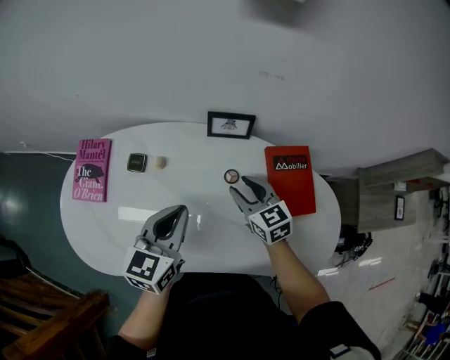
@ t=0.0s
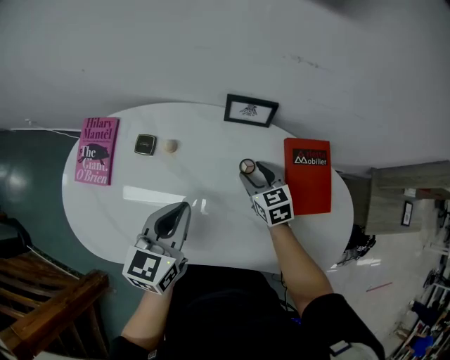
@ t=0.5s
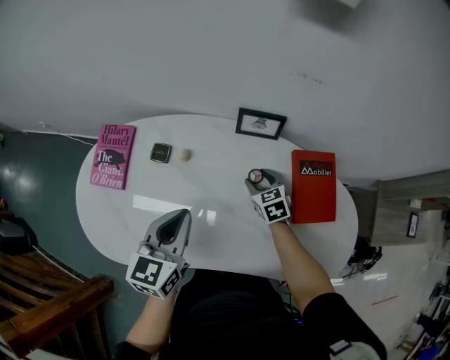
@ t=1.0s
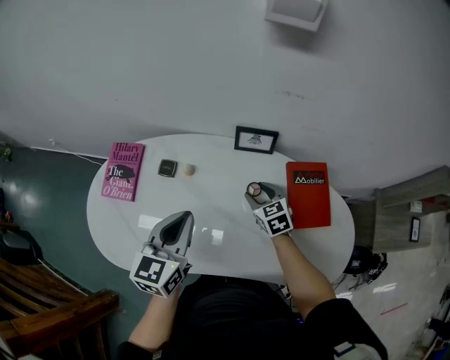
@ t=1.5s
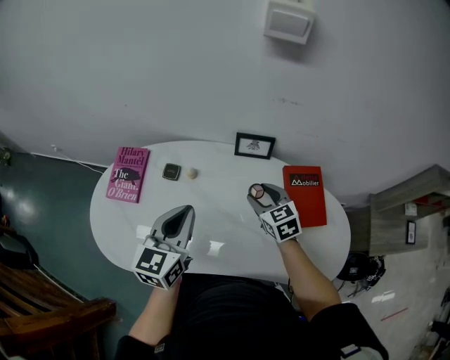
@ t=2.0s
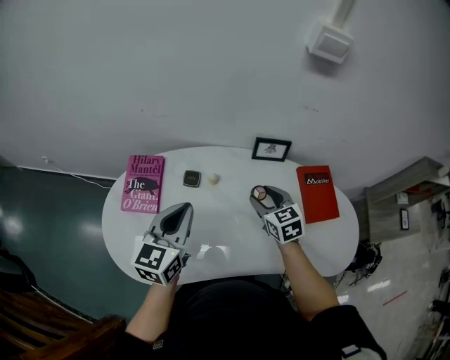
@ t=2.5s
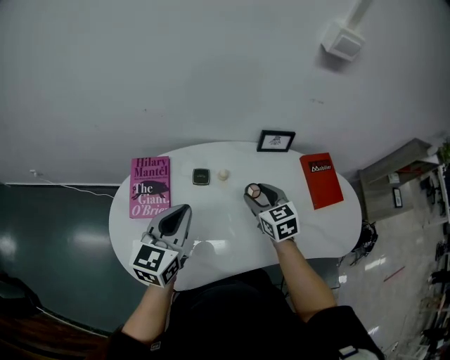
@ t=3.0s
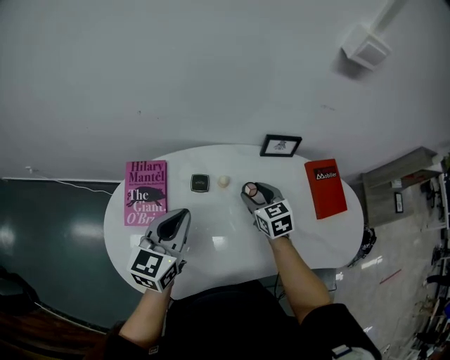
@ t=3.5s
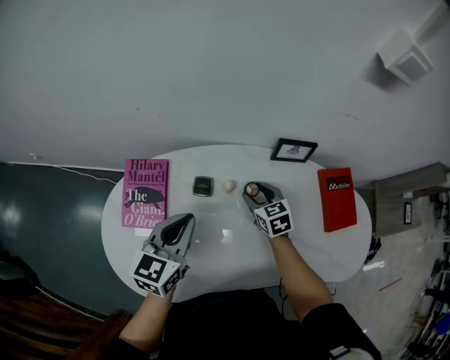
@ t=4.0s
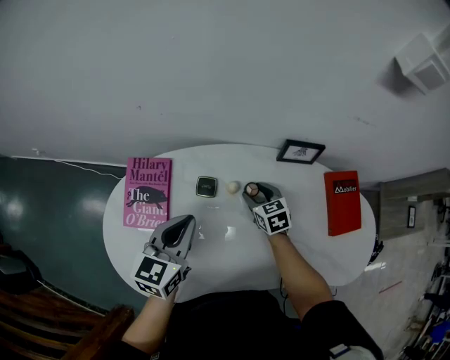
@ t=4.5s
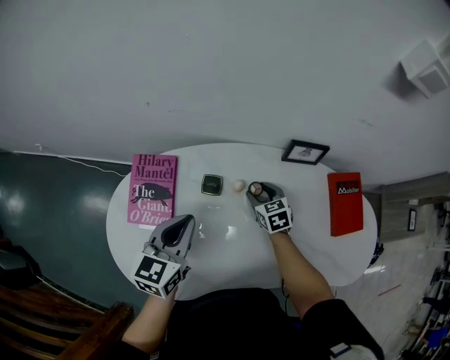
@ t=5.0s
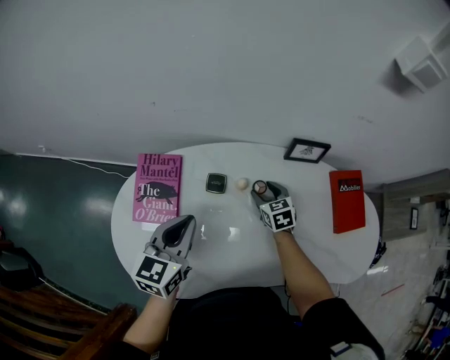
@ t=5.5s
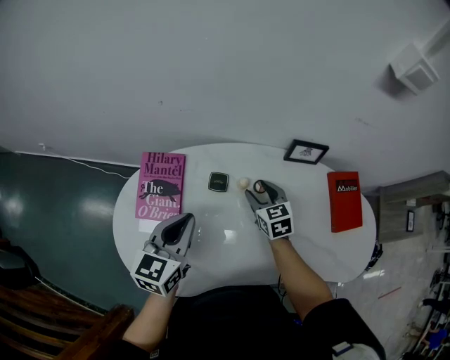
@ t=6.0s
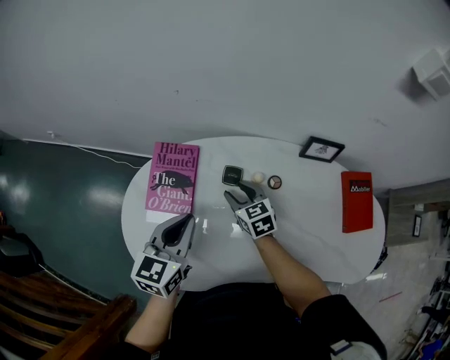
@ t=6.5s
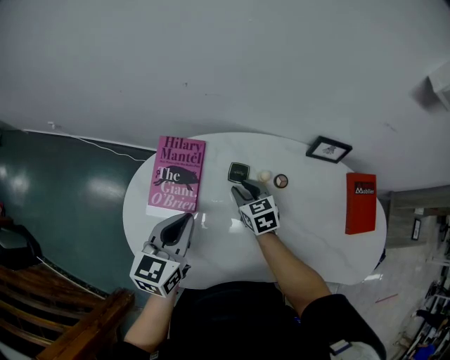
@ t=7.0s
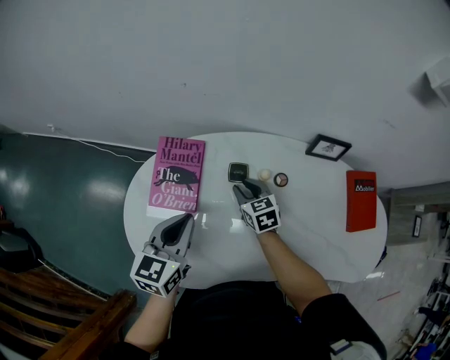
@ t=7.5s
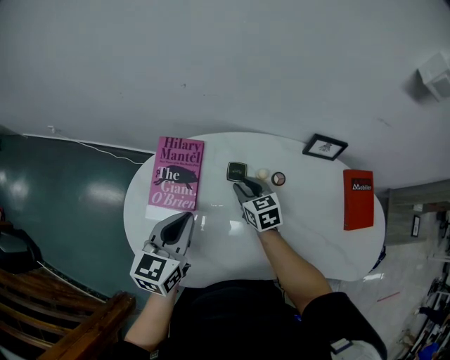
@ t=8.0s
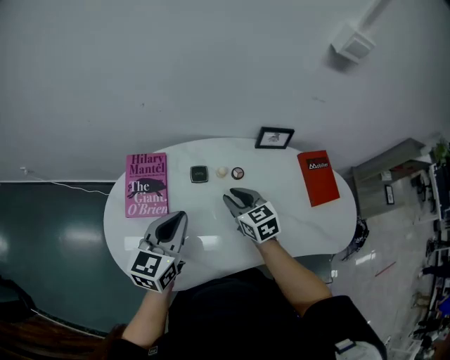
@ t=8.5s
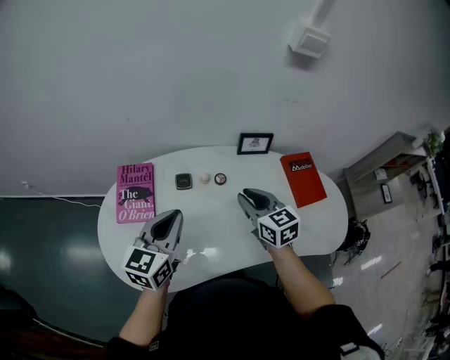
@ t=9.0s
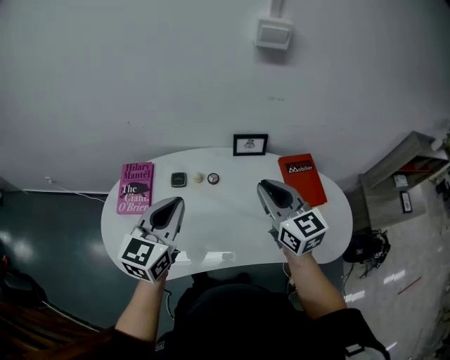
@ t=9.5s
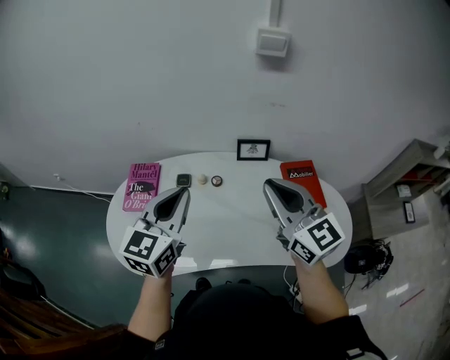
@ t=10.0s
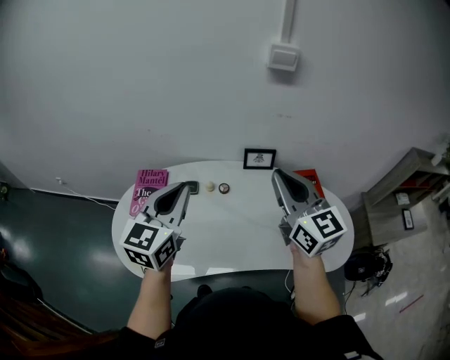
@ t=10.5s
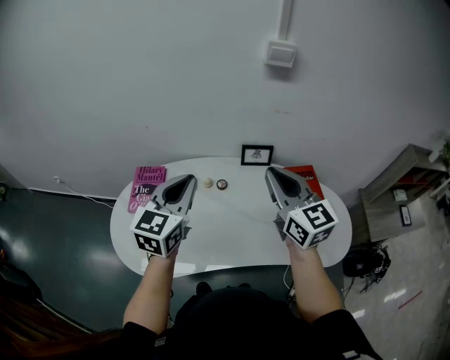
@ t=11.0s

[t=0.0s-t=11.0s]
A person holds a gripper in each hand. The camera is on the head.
t=0.0s to t=2.0s: The left gripper heads upward and to the left, covering roughly 10 cm. The right gripper travels downward and back again, approximately 10 cm each way.
t=2.0s to t=3.5s: The two grippers go roughly 20 cm to the left.
t=3.5s to t=5.5s: The right gripper is displaced downward by about 10 cm.
t=5.5s to t=7.5s: The right gripper goes roughly 15 cm to the left. The left gripper shifts roughly 5 cm to the left.
t=7.5s to t=9.0s: The right gripper shifts approximately 30 cm upward, to the right and backward, and turns by some 20 degrees; the left gripper heads to the right and upward, covering roughly 15 cm.
t=9.0s to t=11.0s: Both grippers travel together upward and to the right, approximately 20 cm. The right gripper changes its angle by about 30 degrees.

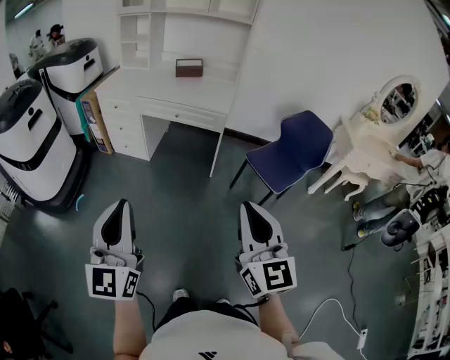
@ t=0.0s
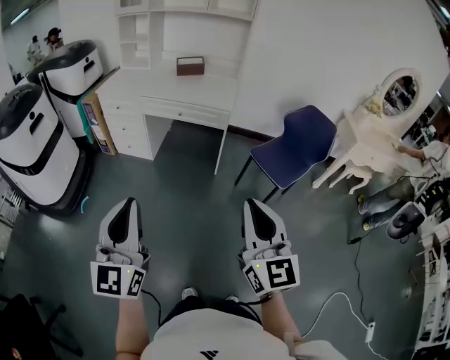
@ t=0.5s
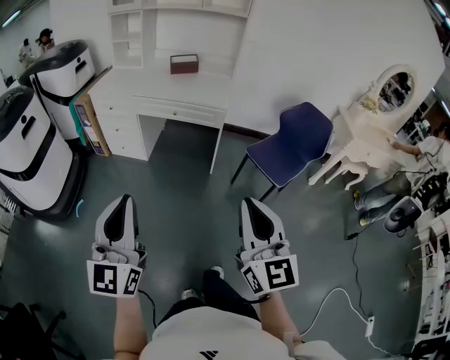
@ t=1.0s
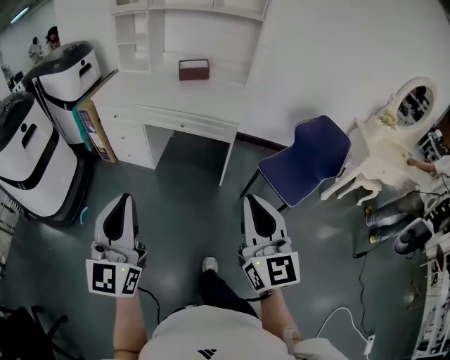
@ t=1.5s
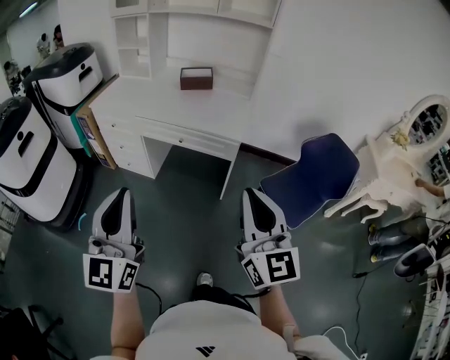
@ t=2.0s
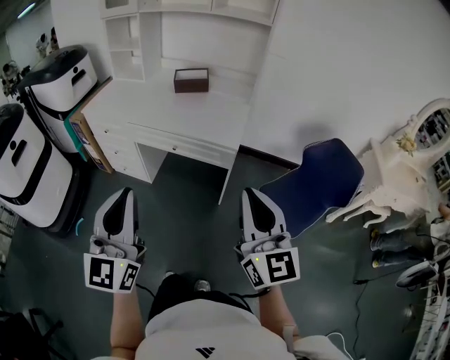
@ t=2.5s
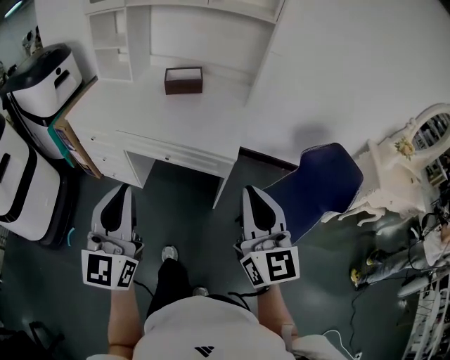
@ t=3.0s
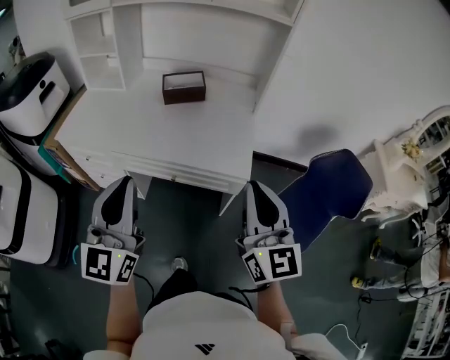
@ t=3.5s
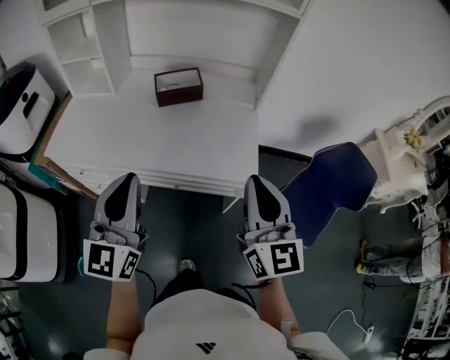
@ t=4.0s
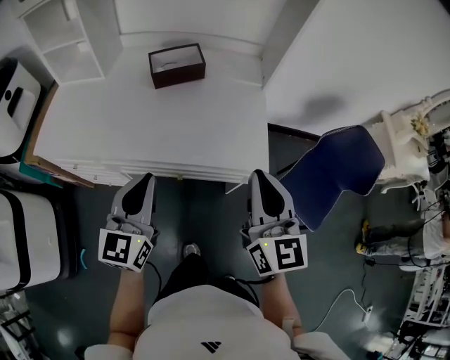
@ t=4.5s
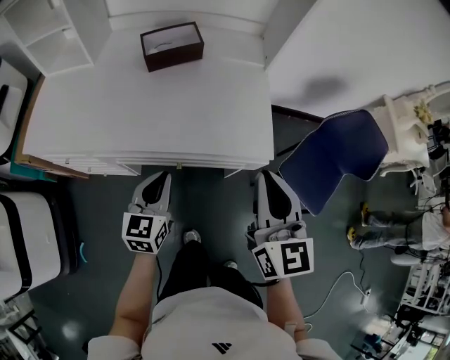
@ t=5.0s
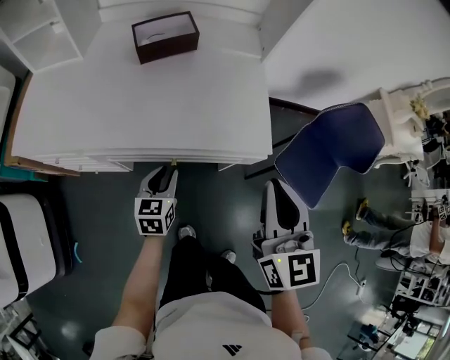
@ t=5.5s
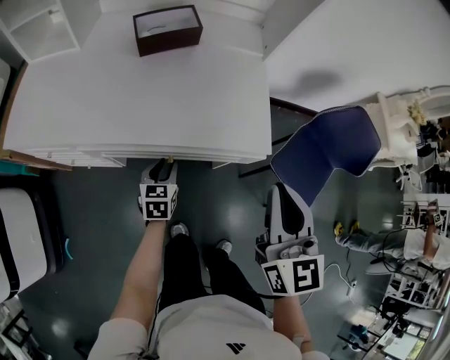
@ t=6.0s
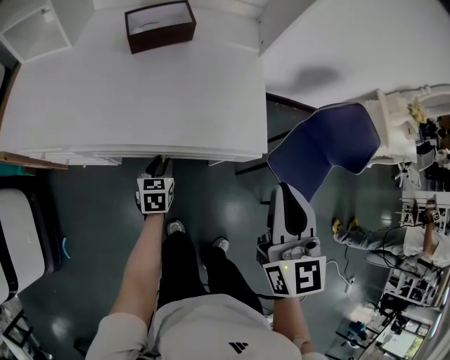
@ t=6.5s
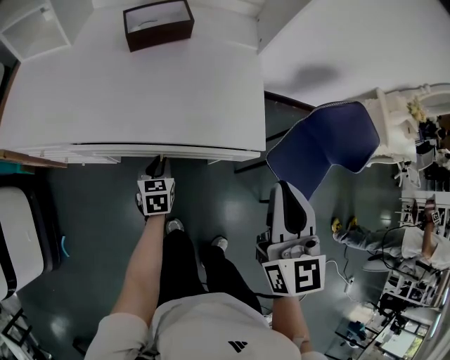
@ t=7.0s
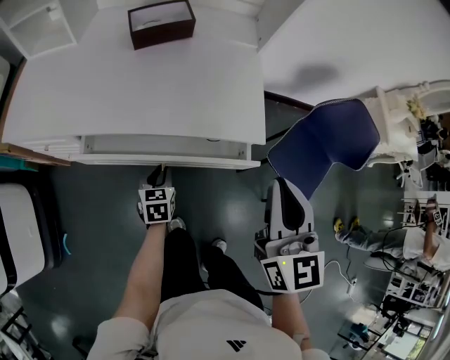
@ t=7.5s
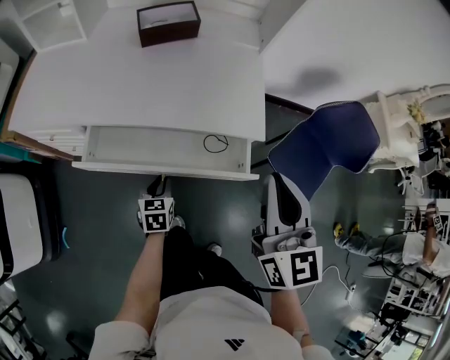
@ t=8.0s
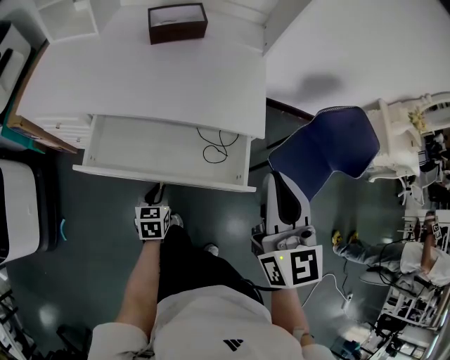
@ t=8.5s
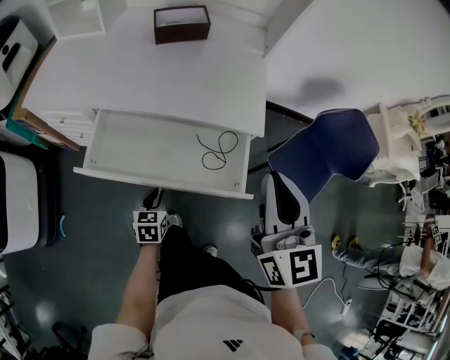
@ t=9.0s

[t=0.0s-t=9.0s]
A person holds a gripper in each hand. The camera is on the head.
t=0.0s to t=2.0s: The grippers both shift forward by approximately 25 cm.
t=2.0s to t=4.5s: The two grippers travel together, forward, about 40 cm. The left gripper turns by some 30 degrees; the right gripper changes its angle by about 20 degrees.
t=4.5s to t=7.0s: The right gripper shifts by approximately 5 cm, while the left gripper shifts roughly 30 cm downward, and tilts its fingers some 40 degrees downward.
t=7.0s to t=9.0s: The left gripper shifts about 20 cm backward; the right gripper shifts approximately 10 cm backward.

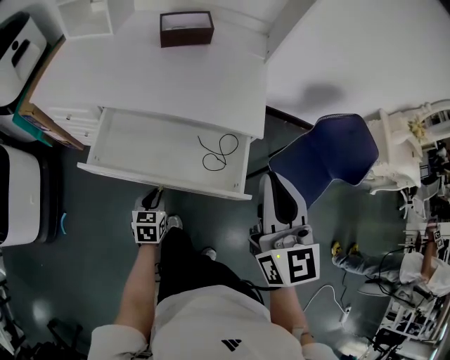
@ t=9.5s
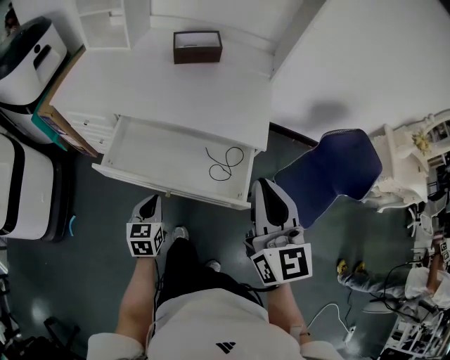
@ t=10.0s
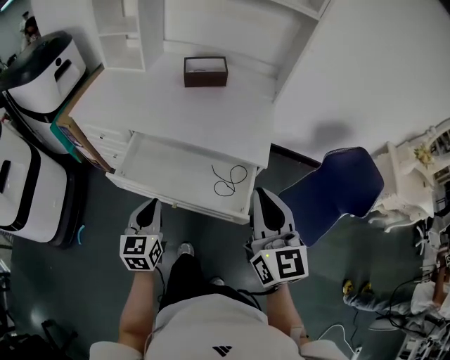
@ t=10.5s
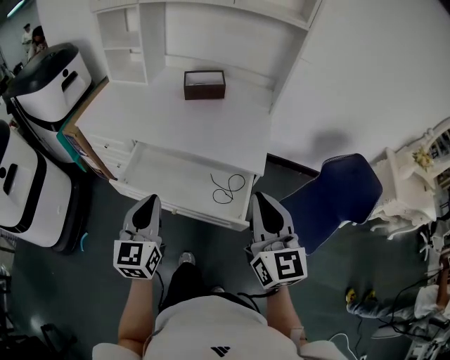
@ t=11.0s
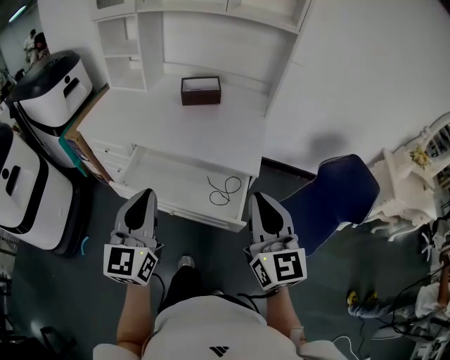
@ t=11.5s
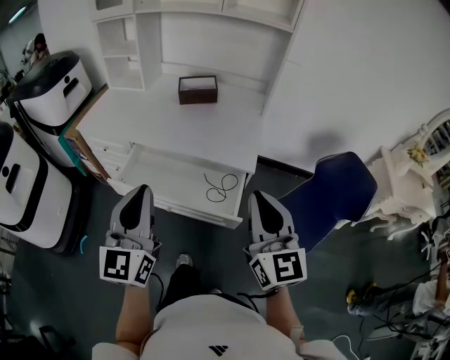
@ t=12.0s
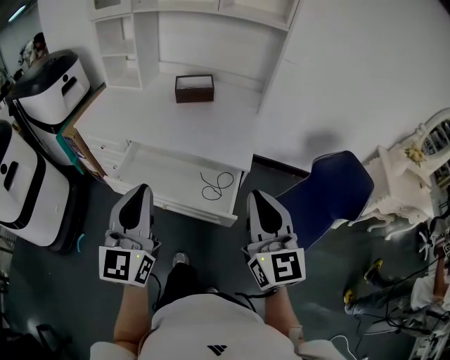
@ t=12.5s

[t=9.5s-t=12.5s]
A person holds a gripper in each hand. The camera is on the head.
t=9.5s to t=11.0s: The left gripper goes about 30 cm upward, and angles its fingers upward, by roughly 30 degrees.
t=11.0s to t=12.5s: The left gripper is displaced upward and backward by roughly 15 cm, while the right gripper changes place by about 5 cm.

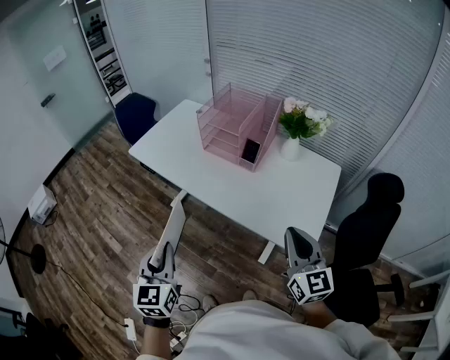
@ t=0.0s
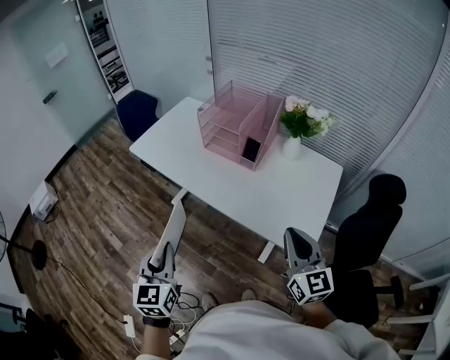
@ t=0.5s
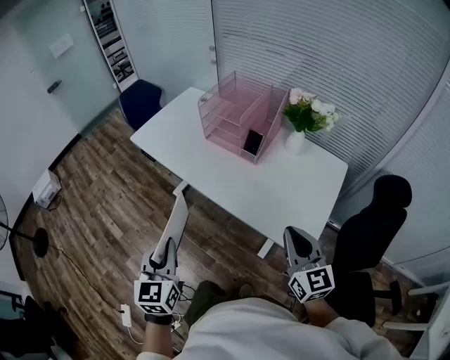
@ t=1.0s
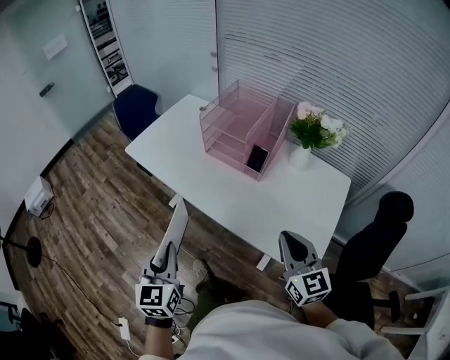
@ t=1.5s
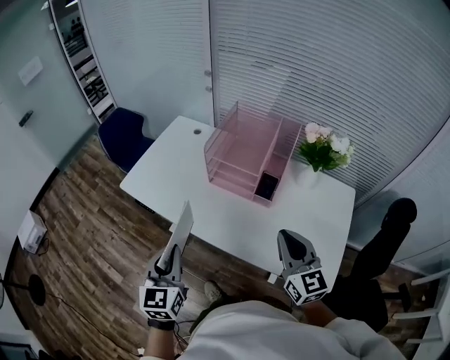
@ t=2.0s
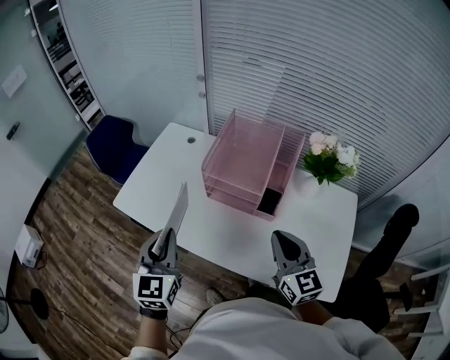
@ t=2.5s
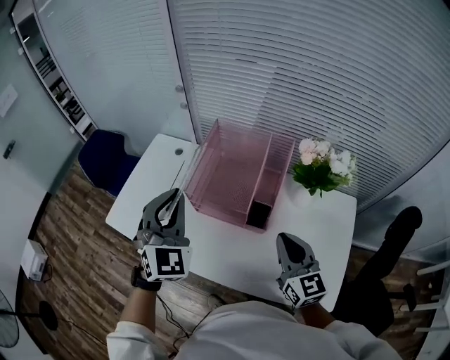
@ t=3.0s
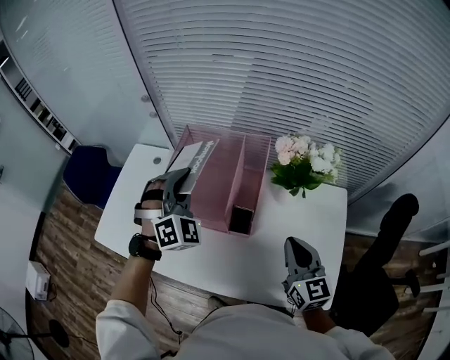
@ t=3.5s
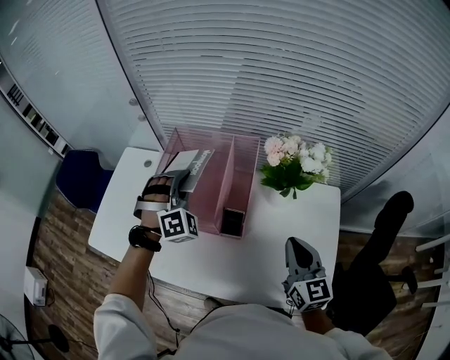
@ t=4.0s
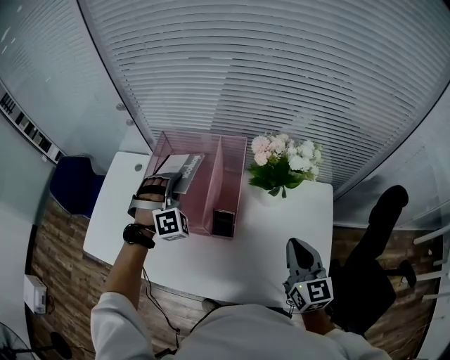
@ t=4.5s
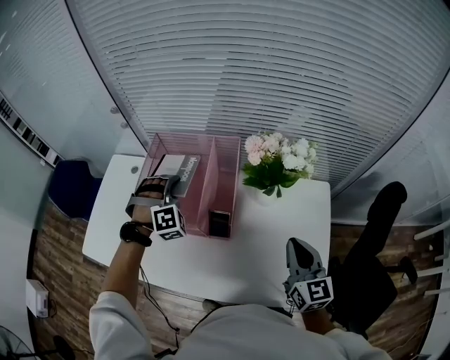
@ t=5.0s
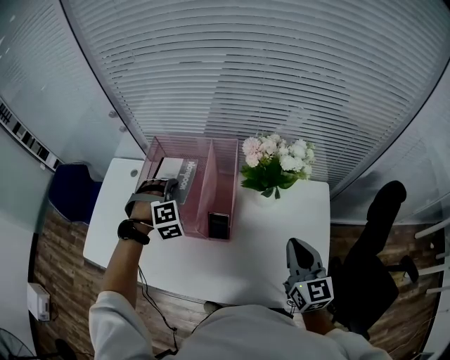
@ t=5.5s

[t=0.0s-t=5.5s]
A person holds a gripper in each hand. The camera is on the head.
t=0.0s to t=2.0s: The grippers both shift forward by approximately 25 cm.
t=2.0s to t=3.5s: The right gripper is displaced forward and to the right by approximately 20 cm. The left gripper goes about 40 cm forward and to the right, and rotates around the line of its fingers by some 70 degrees, clockwise from behind.
t=3.5s to t=5.5s: The right gripper shifts approximately 10 cm to the right; the left gripper moves downward, some 15 cm, angles its fingers downward, by roughly 30 degrees, and opens its fingers.
